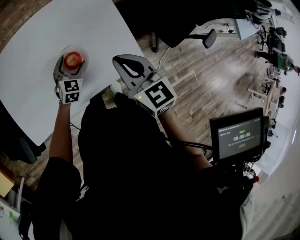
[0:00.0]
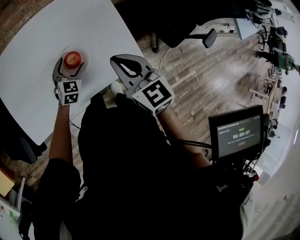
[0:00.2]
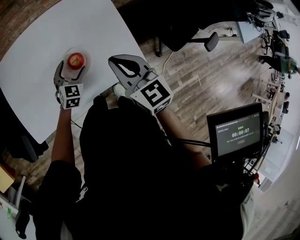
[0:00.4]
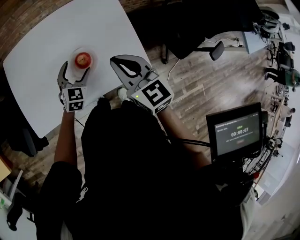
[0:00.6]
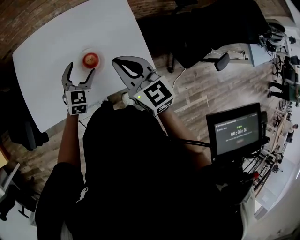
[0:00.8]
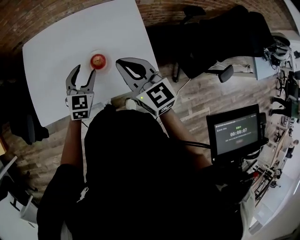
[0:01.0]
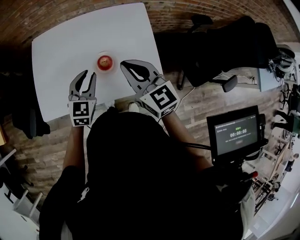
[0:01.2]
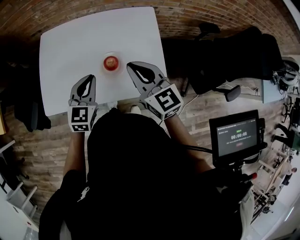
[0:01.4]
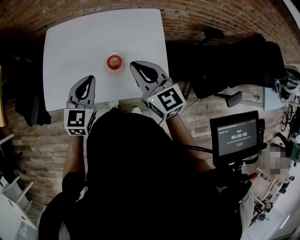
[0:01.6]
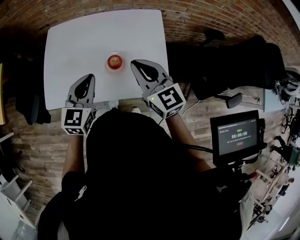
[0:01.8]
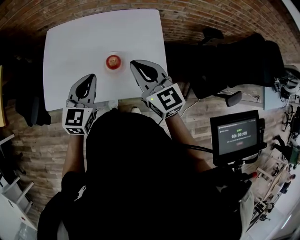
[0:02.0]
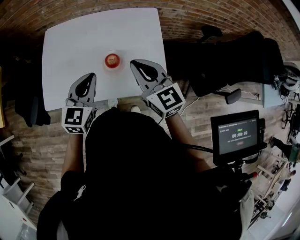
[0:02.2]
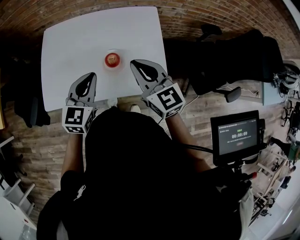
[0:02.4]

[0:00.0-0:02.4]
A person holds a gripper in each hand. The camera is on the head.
0:00.0 to 0:01.2: The right gripper moves upward and to the left, about 10 cm, and rotates some 20 degrees, while the left gripper is displaced upward and backward by some 20 cm, swivels about 20 degrees, and closes.
0:01.2 to 0:02.4: The left gripper goes approximately 5 cm upward.

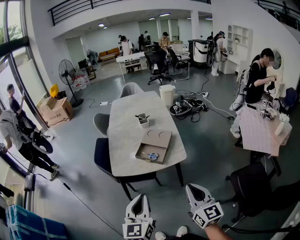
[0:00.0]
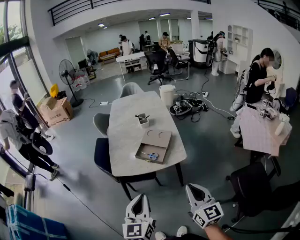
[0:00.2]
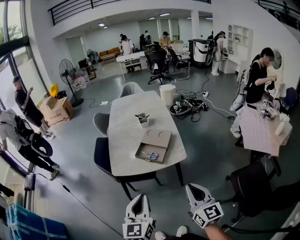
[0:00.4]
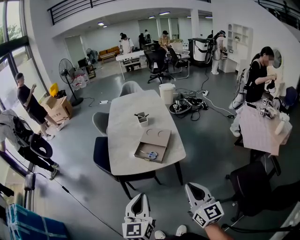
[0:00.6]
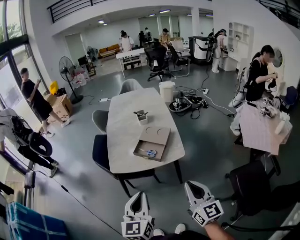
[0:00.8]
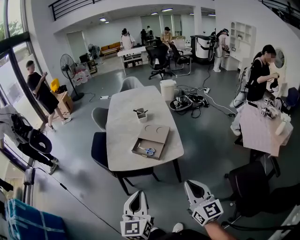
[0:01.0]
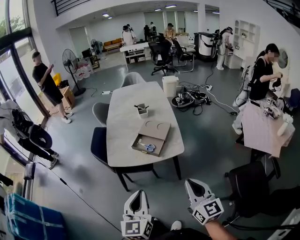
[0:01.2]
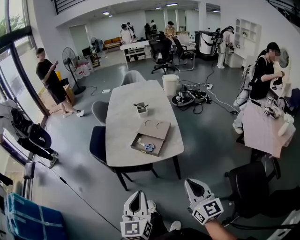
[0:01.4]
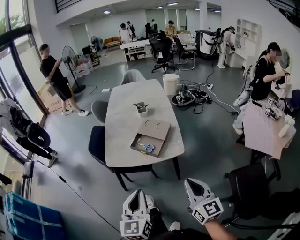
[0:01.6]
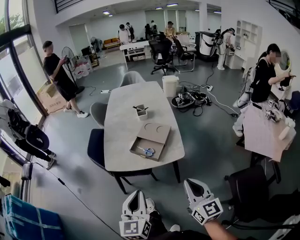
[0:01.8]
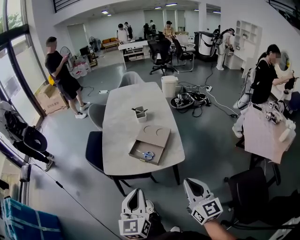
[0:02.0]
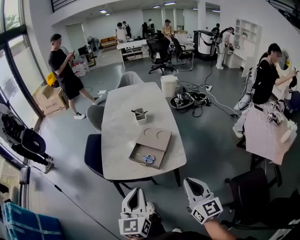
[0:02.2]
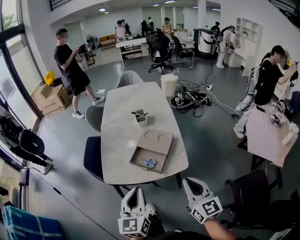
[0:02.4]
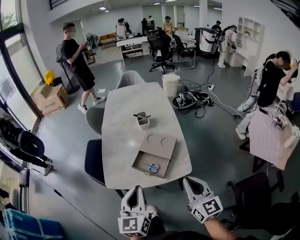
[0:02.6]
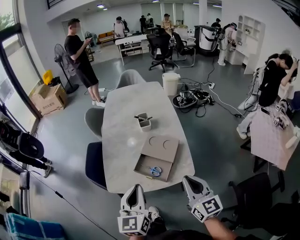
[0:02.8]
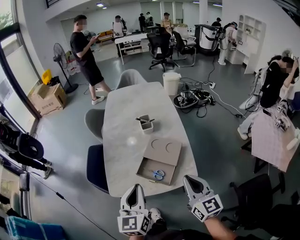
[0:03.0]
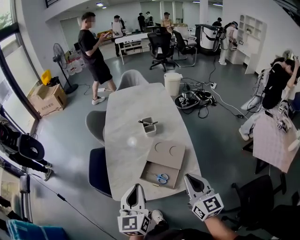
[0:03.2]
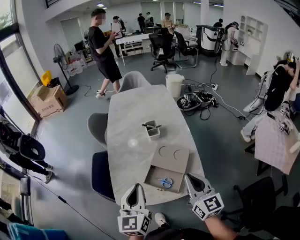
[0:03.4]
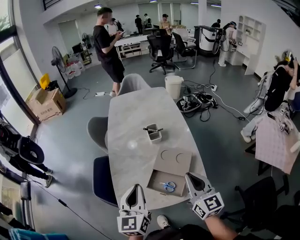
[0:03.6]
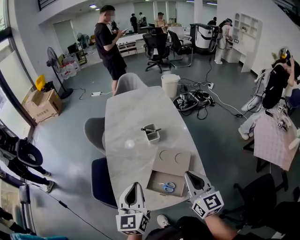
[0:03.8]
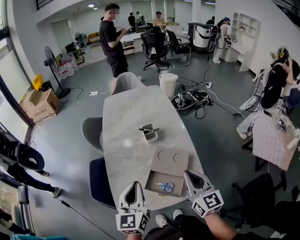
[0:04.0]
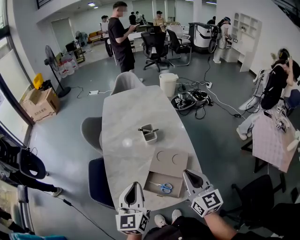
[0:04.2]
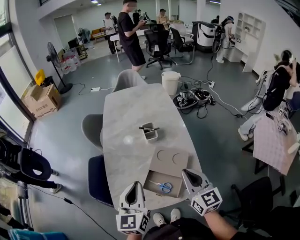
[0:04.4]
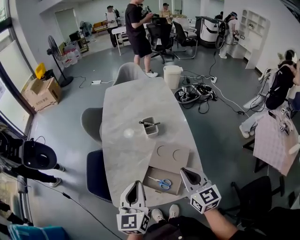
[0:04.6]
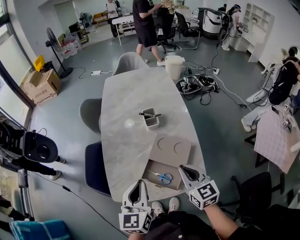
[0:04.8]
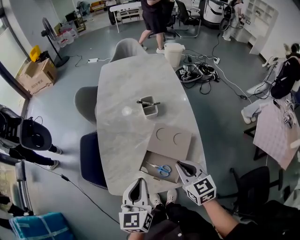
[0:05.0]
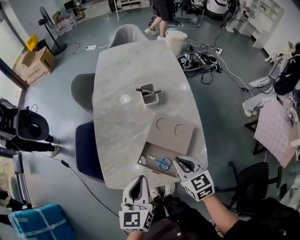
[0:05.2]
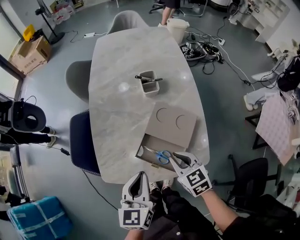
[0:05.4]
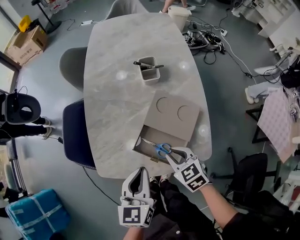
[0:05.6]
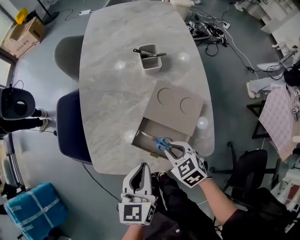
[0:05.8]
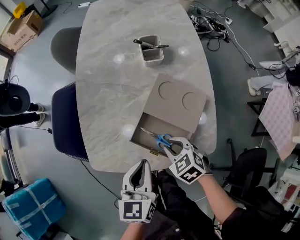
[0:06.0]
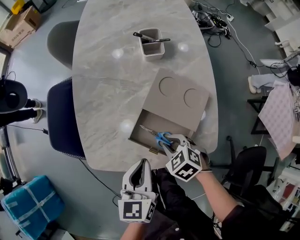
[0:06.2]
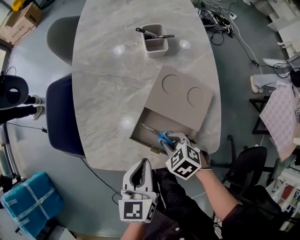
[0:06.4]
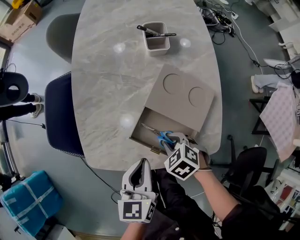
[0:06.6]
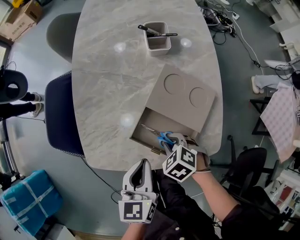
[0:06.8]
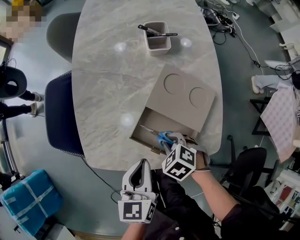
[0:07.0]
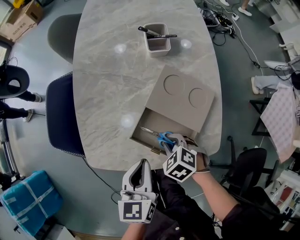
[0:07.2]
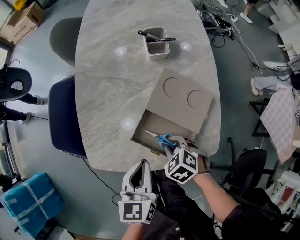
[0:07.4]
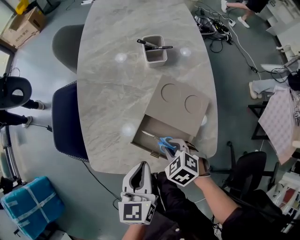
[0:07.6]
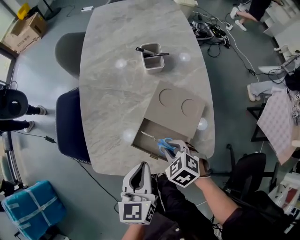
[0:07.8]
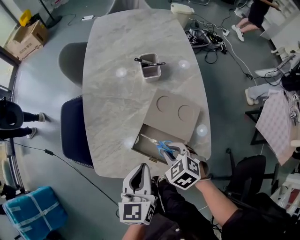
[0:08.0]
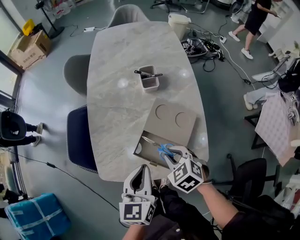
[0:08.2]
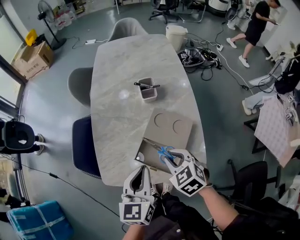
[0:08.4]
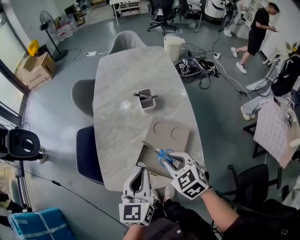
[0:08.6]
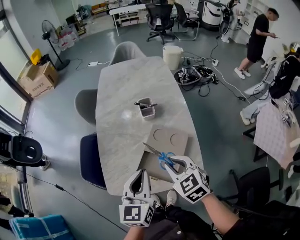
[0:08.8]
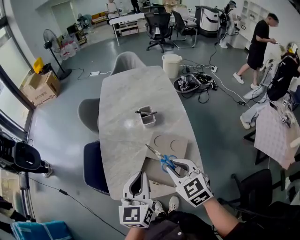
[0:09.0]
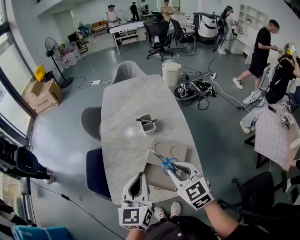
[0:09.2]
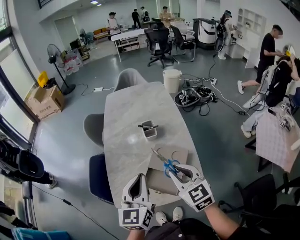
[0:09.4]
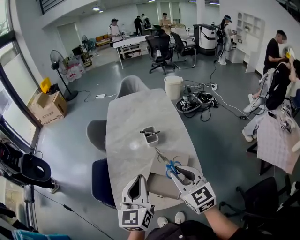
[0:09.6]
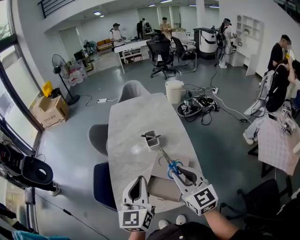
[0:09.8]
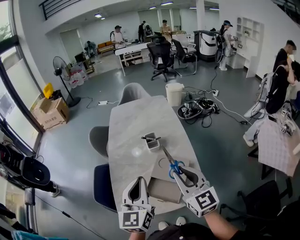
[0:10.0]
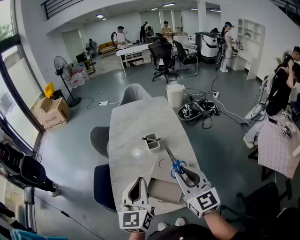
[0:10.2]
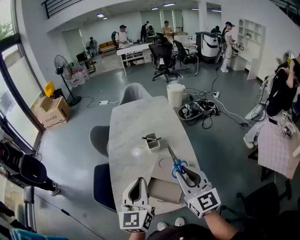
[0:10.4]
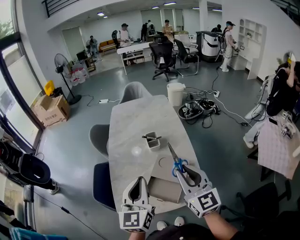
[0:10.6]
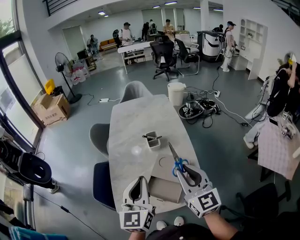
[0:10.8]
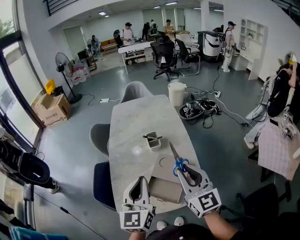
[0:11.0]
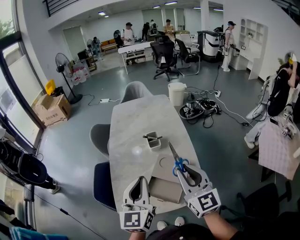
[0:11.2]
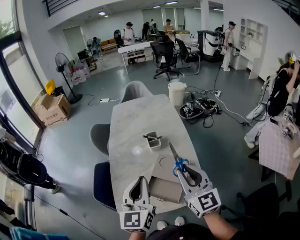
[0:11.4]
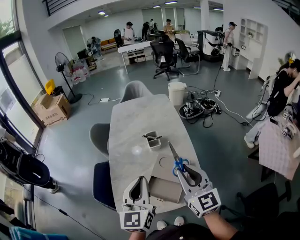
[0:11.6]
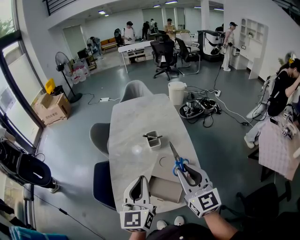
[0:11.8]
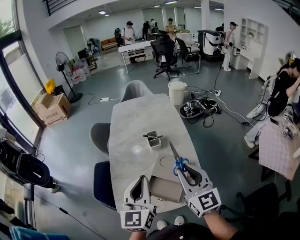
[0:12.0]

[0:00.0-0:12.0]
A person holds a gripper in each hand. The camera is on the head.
0:00.0 to 0:01.6: The right gripper moves some 5 cm.
0:01.6 to 0:03.0: Both grippers travel together forward, approximately 25 cm.
0:03.0 to 0:04.4: The grippers both shift forward by roughly 15 cm.
0:04.4 to 0:06.0: The two grippers go roughly 25 cm downward. The left gripper rotates roughly 20 degrees, while the right gripper tilts its fingers some 50 degrees downward.
0:06.0 to 0:07.6: The grippers stay close to where they were, moving slightly.
0:07.6 to 0:09.0: The grippers both shift upward by roughly 25 cm. The right gripper angles its fingers upward, by about 40 degrees; the left gripper turns by about 20 degrees.
0:09.0 to 0:10.4: The left gripper travels upward by roughly 5 cm, while the right gripper heads upward, covering approximately 10 cm, and angles its fingers upward, by some 30 degrees.
0:10.4 to 0:12.0: Neither gripper changes place.

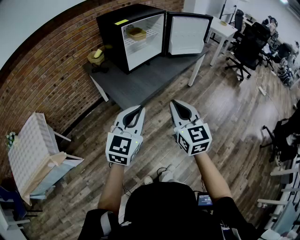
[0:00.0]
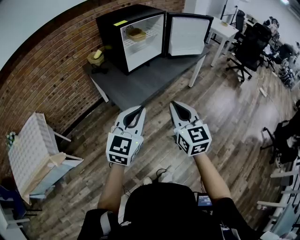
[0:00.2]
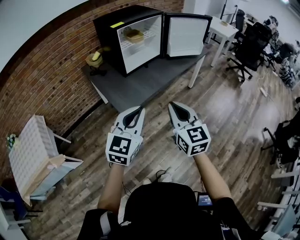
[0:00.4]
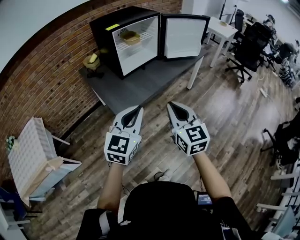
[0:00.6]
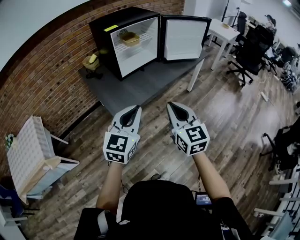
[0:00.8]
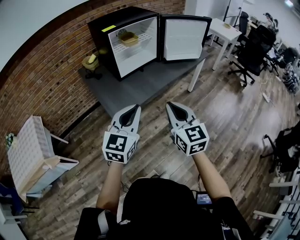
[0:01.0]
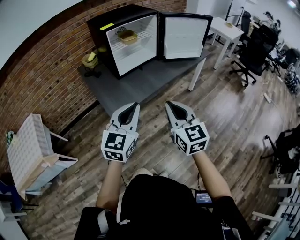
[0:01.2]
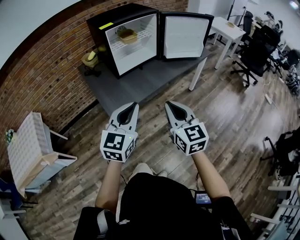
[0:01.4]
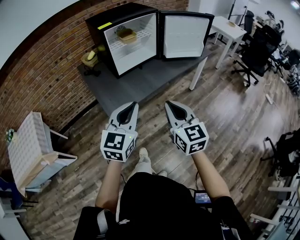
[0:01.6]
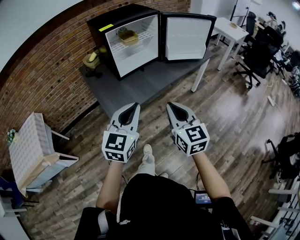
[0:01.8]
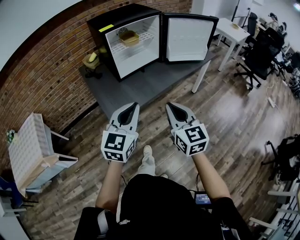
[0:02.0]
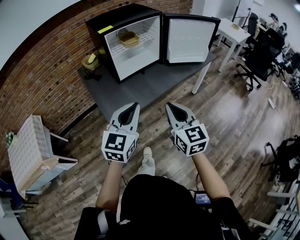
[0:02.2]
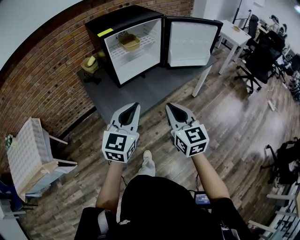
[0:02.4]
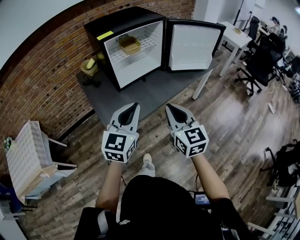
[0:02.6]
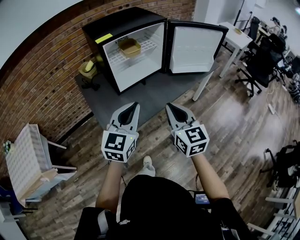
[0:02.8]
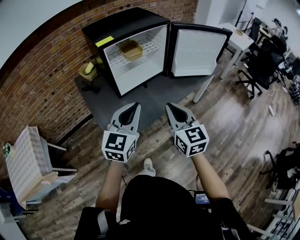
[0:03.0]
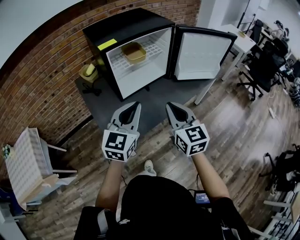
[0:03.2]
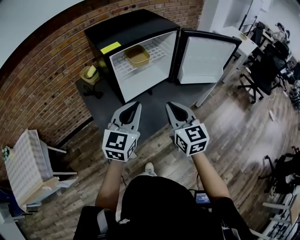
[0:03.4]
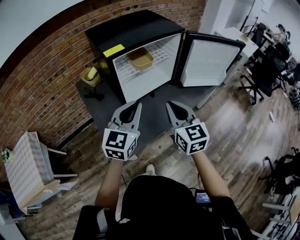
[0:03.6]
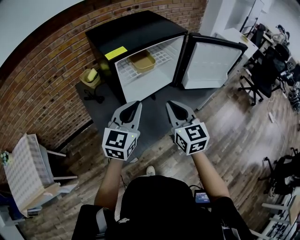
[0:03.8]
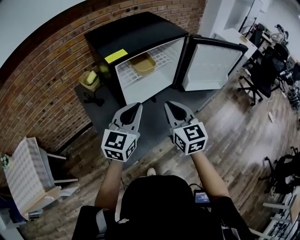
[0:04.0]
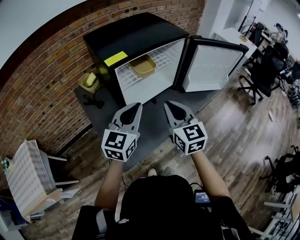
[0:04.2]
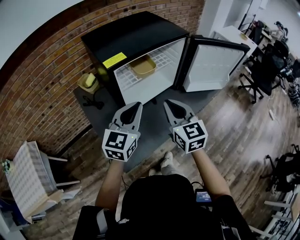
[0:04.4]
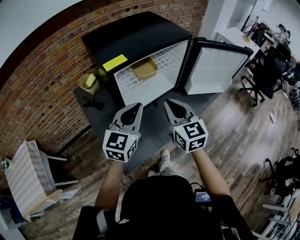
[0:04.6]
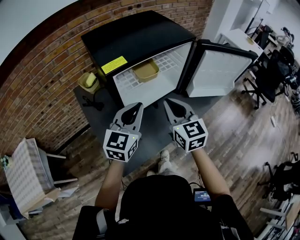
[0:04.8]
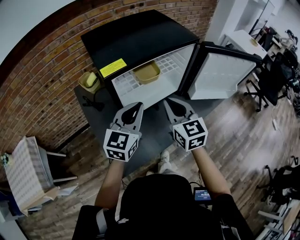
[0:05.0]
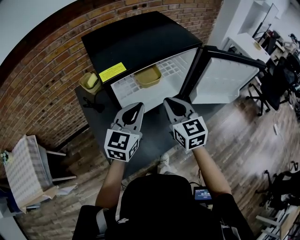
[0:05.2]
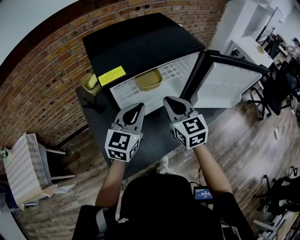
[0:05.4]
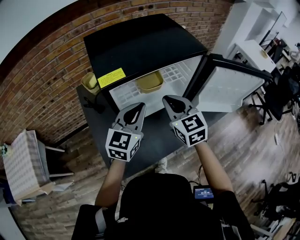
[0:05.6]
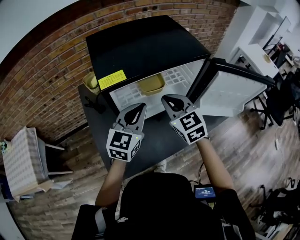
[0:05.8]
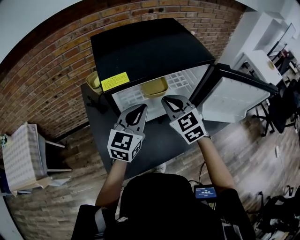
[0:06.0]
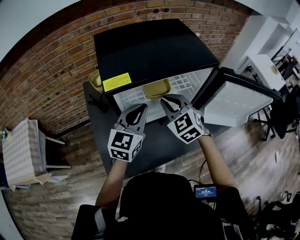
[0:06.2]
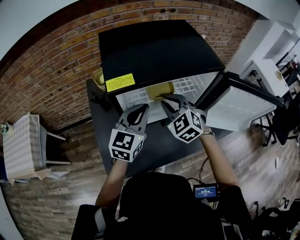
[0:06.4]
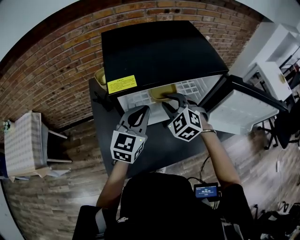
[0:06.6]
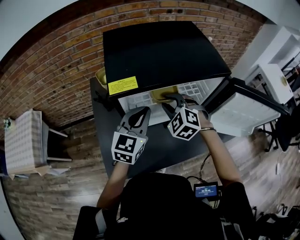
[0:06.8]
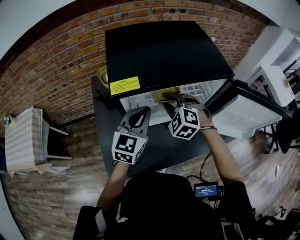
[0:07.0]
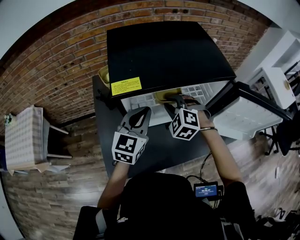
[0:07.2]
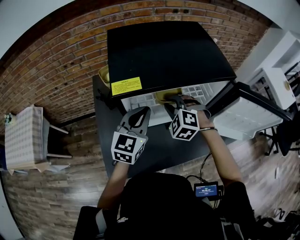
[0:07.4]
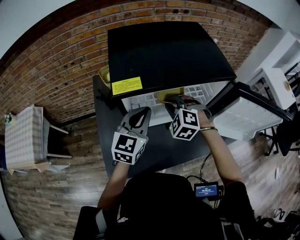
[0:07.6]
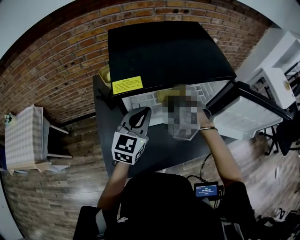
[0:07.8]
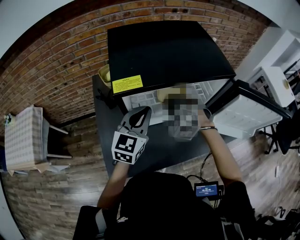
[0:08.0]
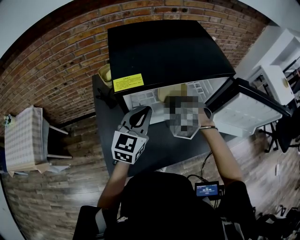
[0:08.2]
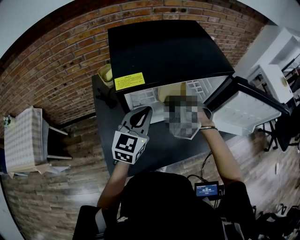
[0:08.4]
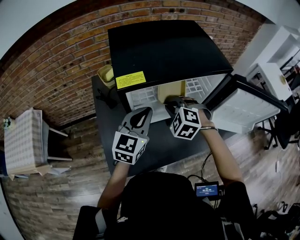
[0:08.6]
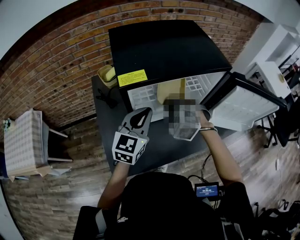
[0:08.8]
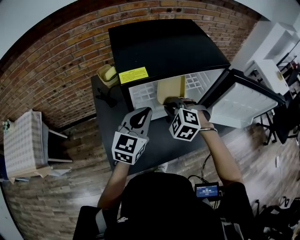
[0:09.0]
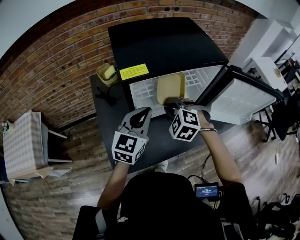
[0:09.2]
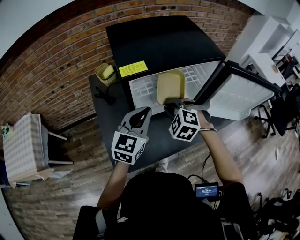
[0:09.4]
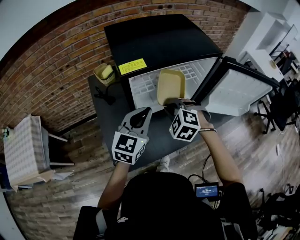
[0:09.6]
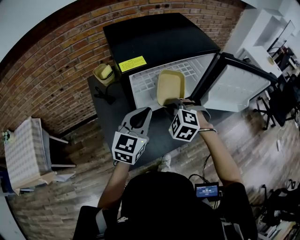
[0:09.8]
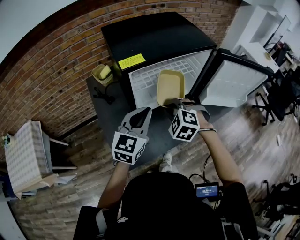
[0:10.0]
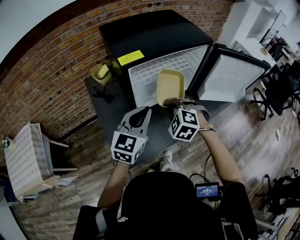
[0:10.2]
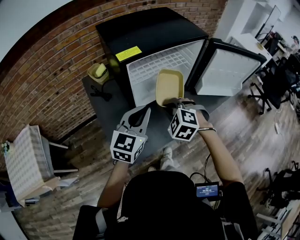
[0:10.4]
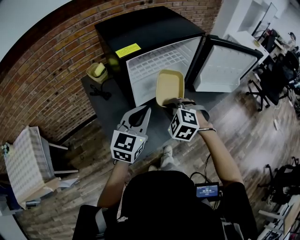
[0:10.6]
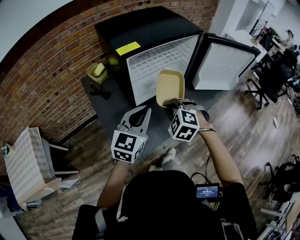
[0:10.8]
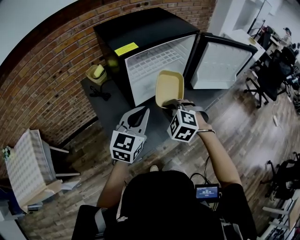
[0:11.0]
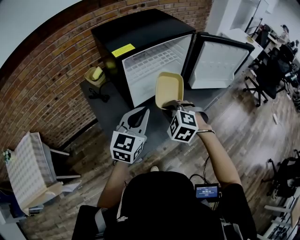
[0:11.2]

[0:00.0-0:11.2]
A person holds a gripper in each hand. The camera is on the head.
0:00.0 to 0:01.6: The left gripper heads forward and to the right, covering approximately 15 cm. The right gripper goes roughly 15 cm to the right and forward.
0:01.6 to 0:03.2: The grippers both shift forward by roughly 25 cm.
0:03.2 to 0:04.8: The two grippers go approximately 20 cm forward.
0:04.8 to 0:06.4: Both grippers move forward, some 15 cm. The right gripper rotates around the line of its fingers by about 40 degrees, counterclockwise from behind.
0:06.4 to 0:08.0: The right gripper goes roughly 5 cm downward, and rotates about 30 degrees.
0:08.0 to 0:09.6: The grippers both shift backward by about 10 cm.
0:09.6 to 0:11.2: The grippers both shift backward by roughly 15 cm.
